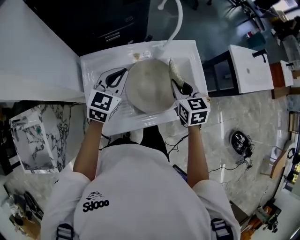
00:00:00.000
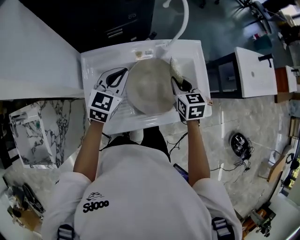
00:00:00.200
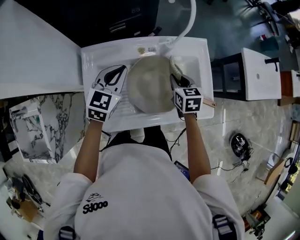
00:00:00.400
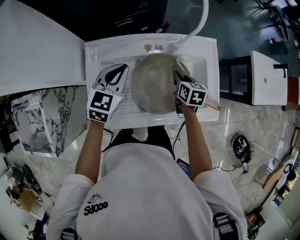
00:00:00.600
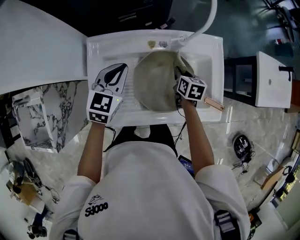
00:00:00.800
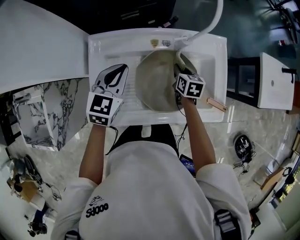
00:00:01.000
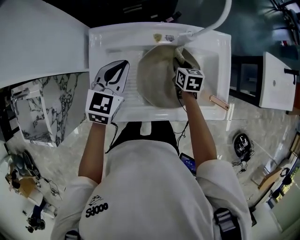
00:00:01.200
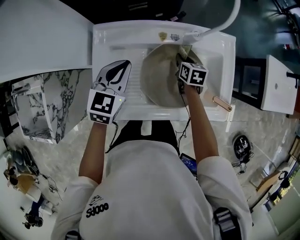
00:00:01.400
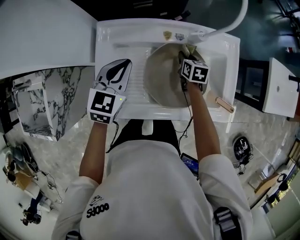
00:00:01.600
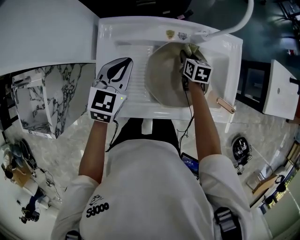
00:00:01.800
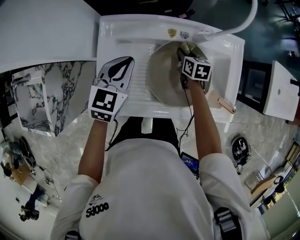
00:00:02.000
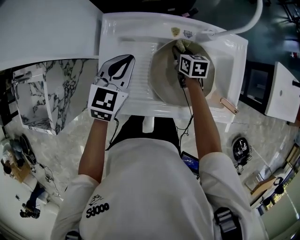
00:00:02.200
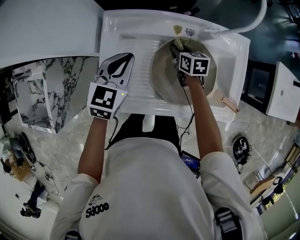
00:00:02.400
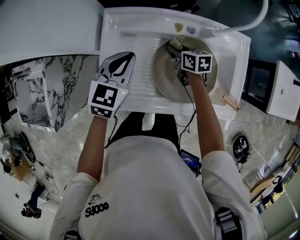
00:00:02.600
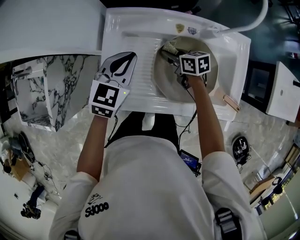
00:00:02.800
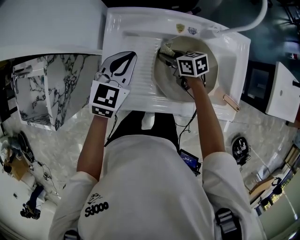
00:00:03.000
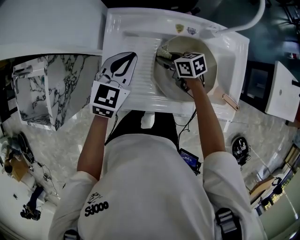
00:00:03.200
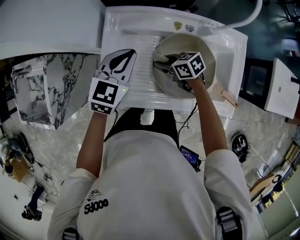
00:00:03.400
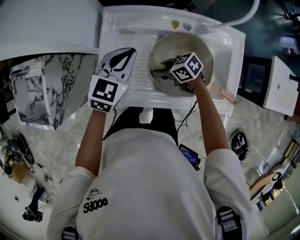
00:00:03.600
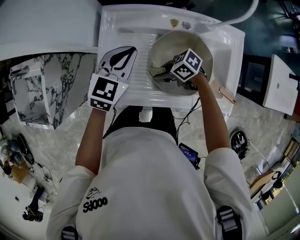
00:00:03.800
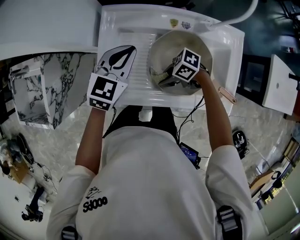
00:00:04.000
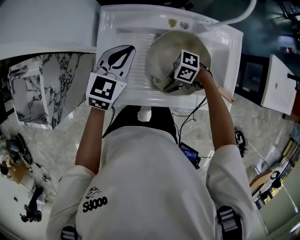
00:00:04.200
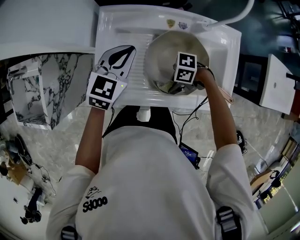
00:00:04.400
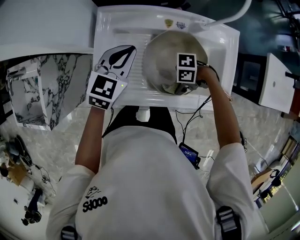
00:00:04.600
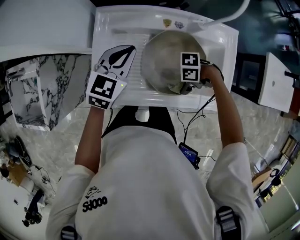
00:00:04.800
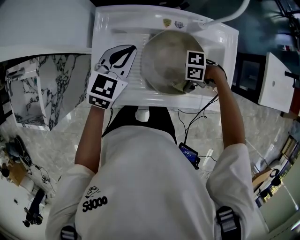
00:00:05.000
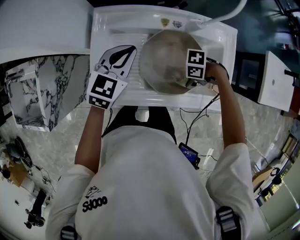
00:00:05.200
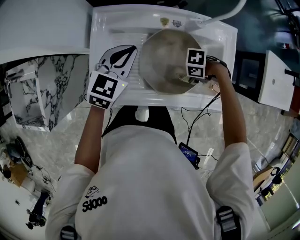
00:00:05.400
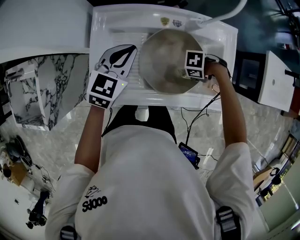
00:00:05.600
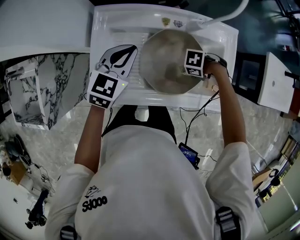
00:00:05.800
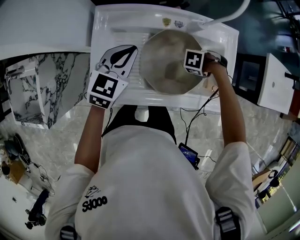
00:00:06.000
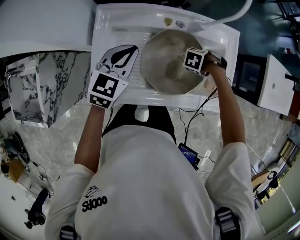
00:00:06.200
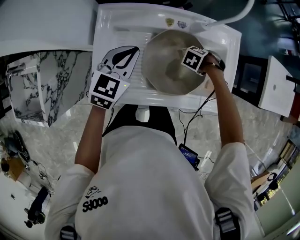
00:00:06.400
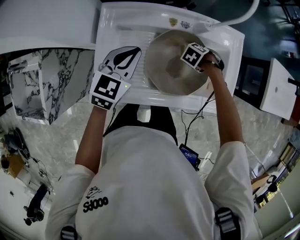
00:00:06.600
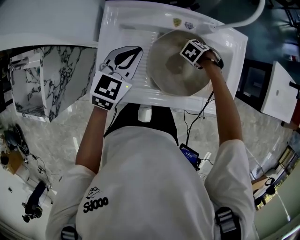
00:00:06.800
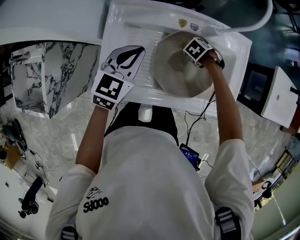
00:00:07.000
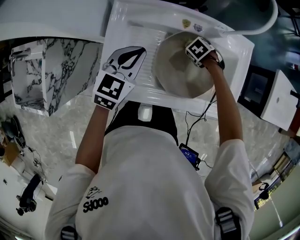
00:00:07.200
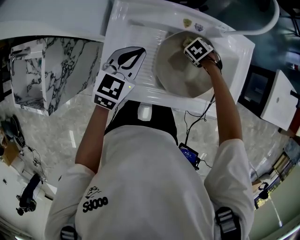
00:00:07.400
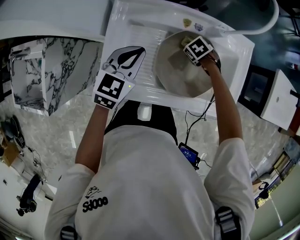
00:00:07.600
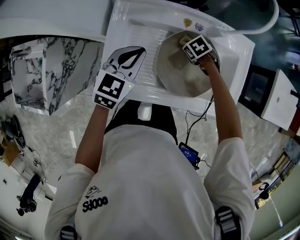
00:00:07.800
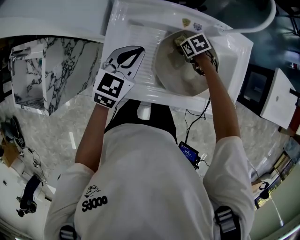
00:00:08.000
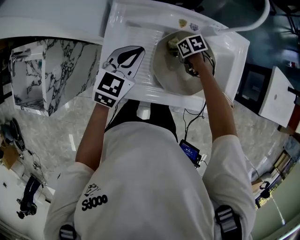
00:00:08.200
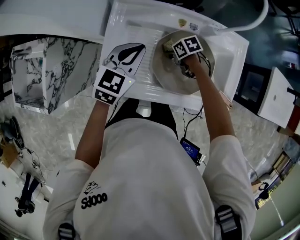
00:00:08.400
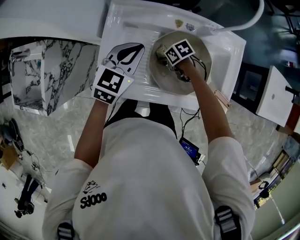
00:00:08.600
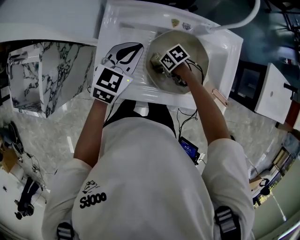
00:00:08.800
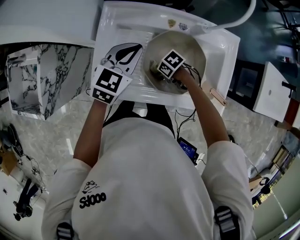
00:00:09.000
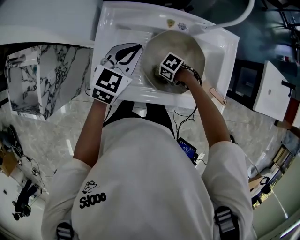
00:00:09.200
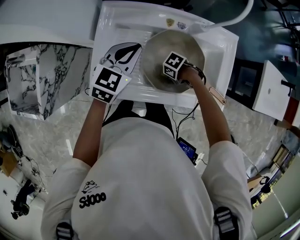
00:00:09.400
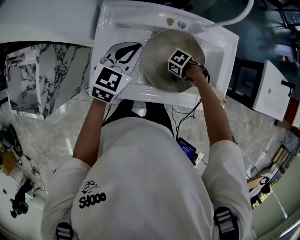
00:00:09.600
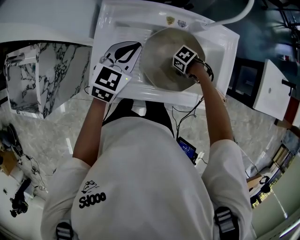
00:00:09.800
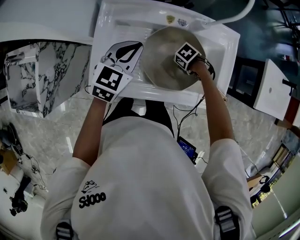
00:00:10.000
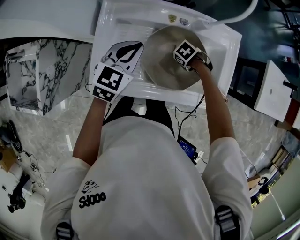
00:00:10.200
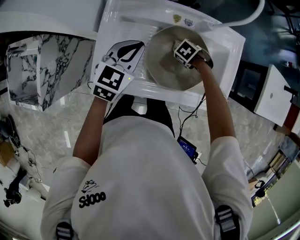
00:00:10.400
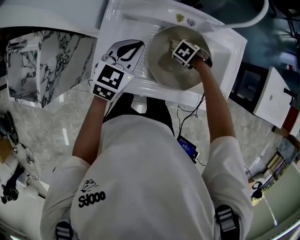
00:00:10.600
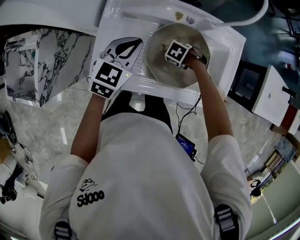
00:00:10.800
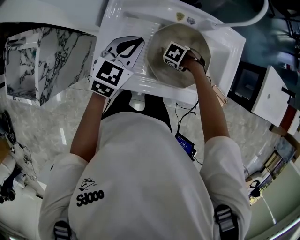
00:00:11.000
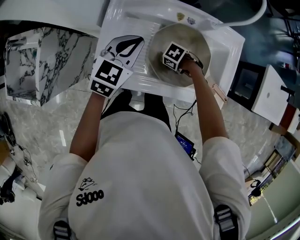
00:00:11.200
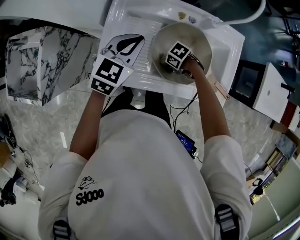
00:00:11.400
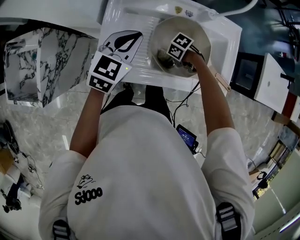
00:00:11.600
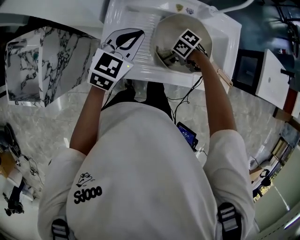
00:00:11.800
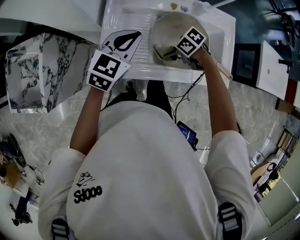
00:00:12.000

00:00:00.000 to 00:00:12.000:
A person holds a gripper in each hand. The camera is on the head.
00:00:00.000 to 00:00:01.600: The left gripper shifts roughly 10 cm to the left and downward. The right gripper moves downward and forward, about 25 cm, and swivels some 20 degrees.
00:00:01.600 to 00:00:03.000: The right gripper heads to the left, covering approximately 15 cm, and changes its angle by some 40 degrees.
00:00:03.000 to 00:00:04.400: The right gripper shifts by approximately 20 cm, and turns by approximately 70 degrees.
00:00:04.400 to 00:00:06.000: The right gripper shifts by some 20 cm, and angles its fingers downward, by roughly 40 degrees.
00:00:06.000 to 00:00:07.600: The right gripper moves about 15 cm, and turns by about 40 degrees.
00:00:07.600 to 00:00:09.000: The right gripper shifts by approximately 15 cm, and turns by roughly 30 degrees.
00:00:09.000 to 00:00:10.400: The right gripper moves roughly 15 cm, and swivels about 30 degrees.
00:00:10.400 to 00:00:12.000: The left gripper changes place by some 5 cm. Meanwhile the right gripper changes place by approximately 20 cm, and angles its fingers upward, by approximately 40 degrees.

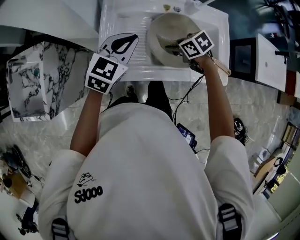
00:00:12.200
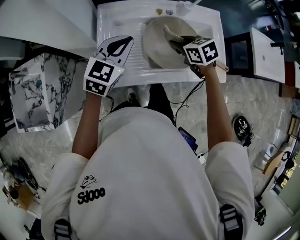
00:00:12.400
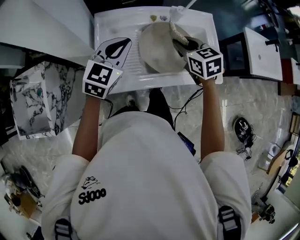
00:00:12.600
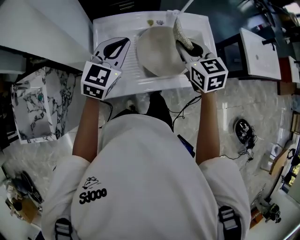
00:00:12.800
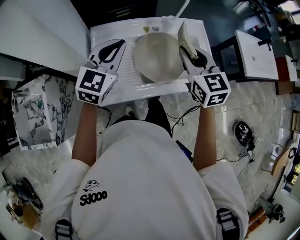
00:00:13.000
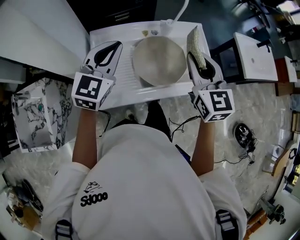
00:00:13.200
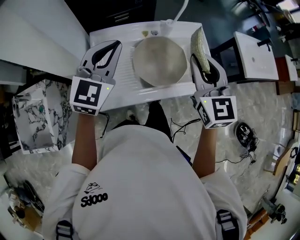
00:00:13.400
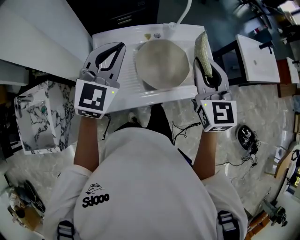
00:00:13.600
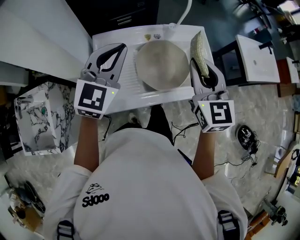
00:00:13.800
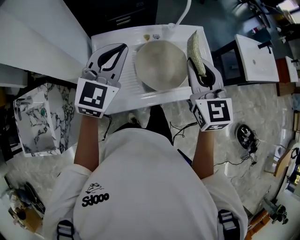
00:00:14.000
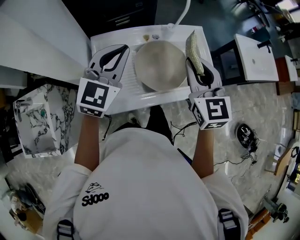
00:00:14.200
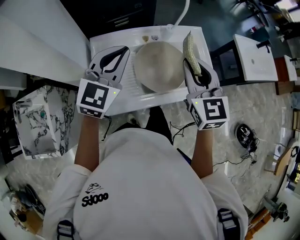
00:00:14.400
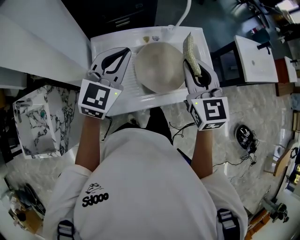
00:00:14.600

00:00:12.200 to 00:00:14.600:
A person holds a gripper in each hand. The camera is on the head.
00:00:12.200 to 00:00:13.400: The right gripper travels upward by about 30 cm, and tilts its fingers approximately 40 degrees upward; the left gripper shifts approximately 15 cm upward, and changes its angle by about 20 degrees.
00:00:13.400 to 00:00:14.600: The grippers stay close to where they were, moving slightly.

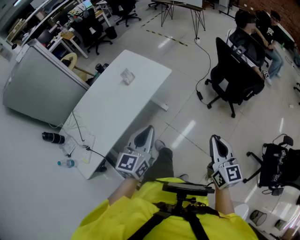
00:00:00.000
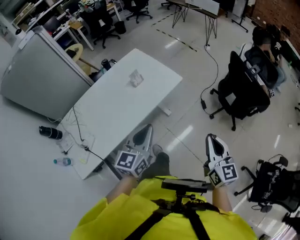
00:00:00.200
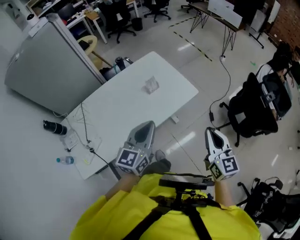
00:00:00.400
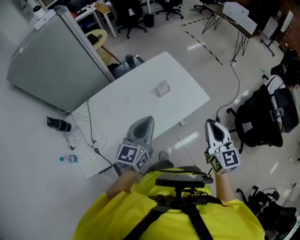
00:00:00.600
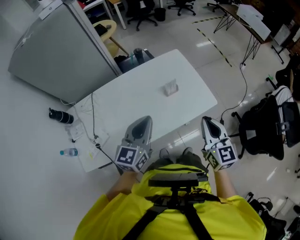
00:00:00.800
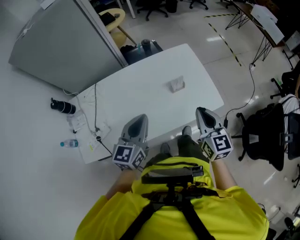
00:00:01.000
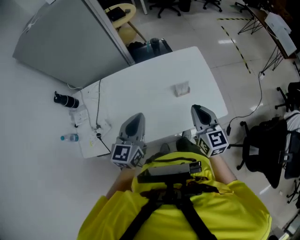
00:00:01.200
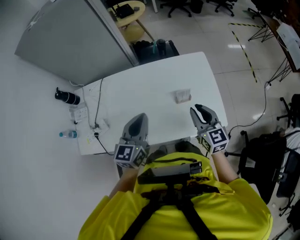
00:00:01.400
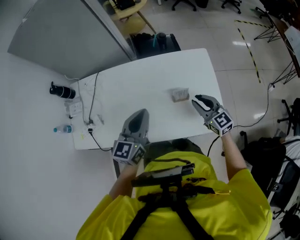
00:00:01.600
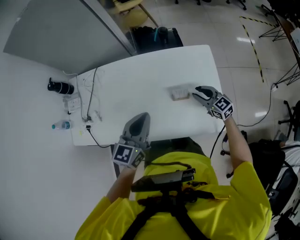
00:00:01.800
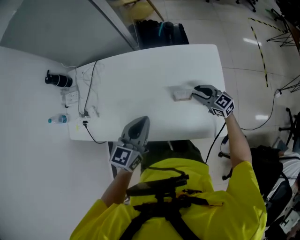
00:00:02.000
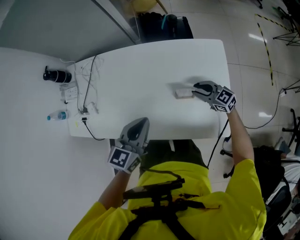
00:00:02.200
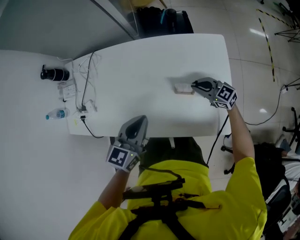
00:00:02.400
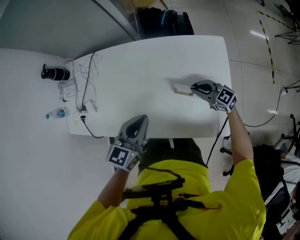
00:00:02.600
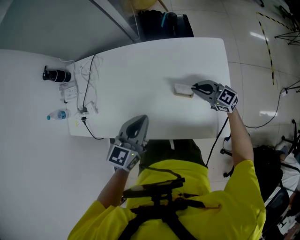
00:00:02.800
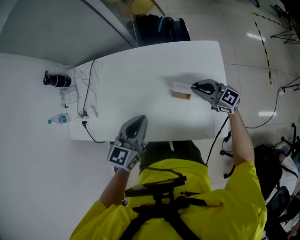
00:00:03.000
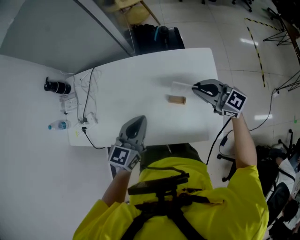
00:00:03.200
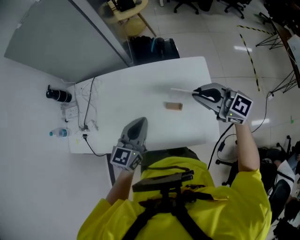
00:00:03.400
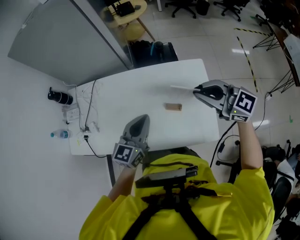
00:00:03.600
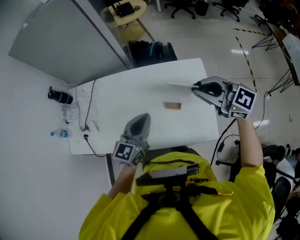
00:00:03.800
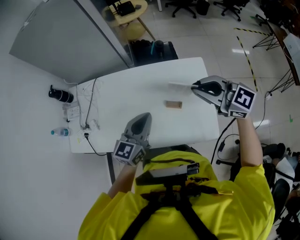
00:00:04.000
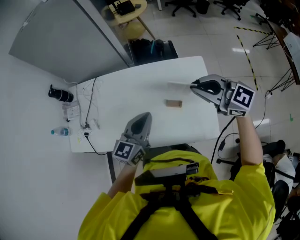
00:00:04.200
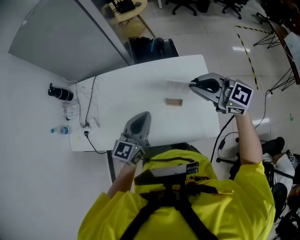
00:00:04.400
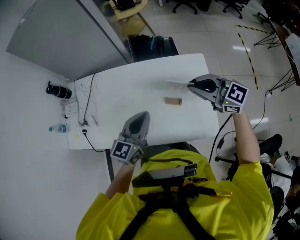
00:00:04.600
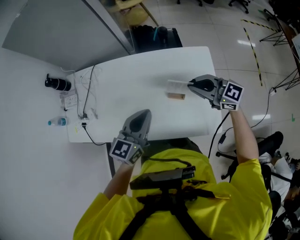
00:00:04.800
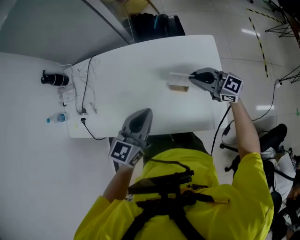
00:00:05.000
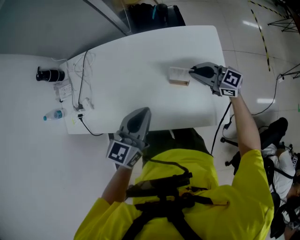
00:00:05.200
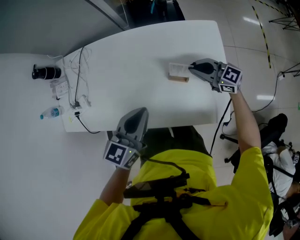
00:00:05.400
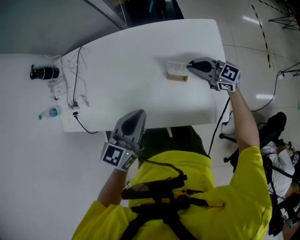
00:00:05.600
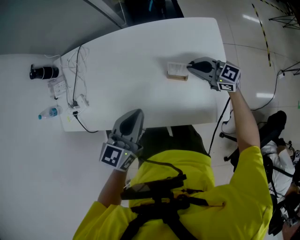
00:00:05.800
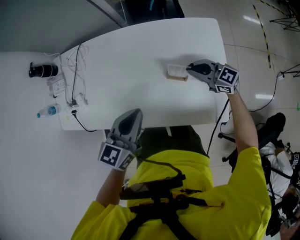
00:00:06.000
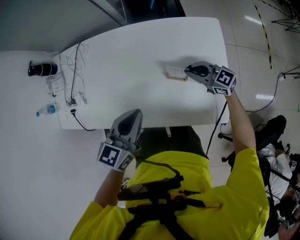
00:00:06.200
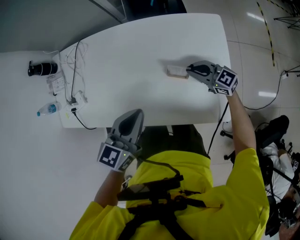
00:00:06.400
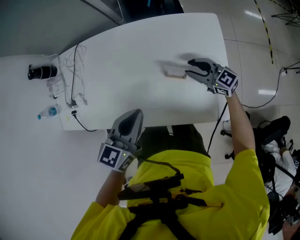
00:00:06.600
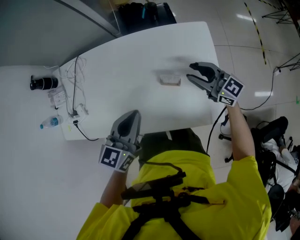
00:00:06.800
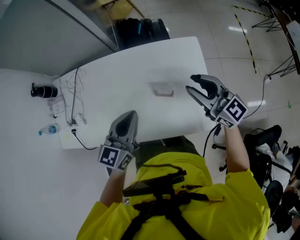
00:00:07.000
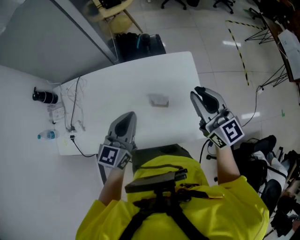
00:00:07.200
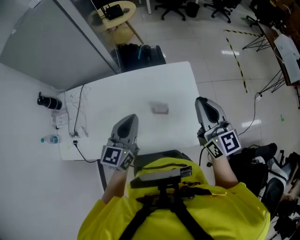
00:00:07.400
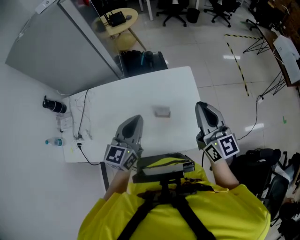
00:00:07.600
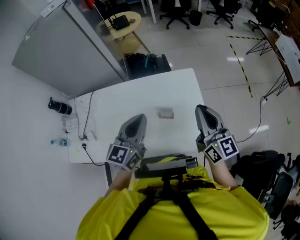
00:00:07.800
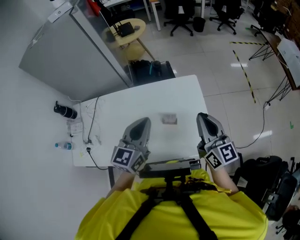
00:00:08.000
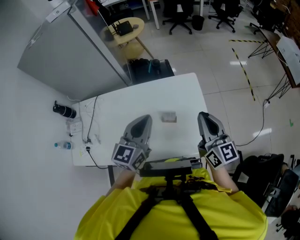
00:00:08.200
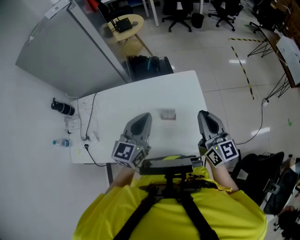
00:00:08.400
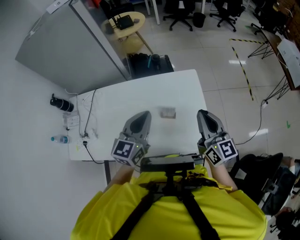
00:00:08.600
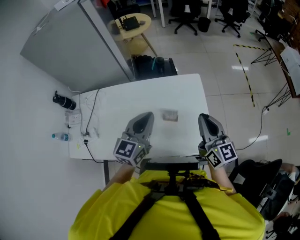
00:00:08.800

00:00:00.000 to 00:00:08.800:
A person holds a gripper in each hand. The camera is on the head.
00:00:00.000 to 00:00:01.400: The two grippers travel together, some 50 cm. The right gripper changes its angle by some 50 degrees; the left gripper changes its angle by approximately 40 degrees.
00:00:01.400 to 00:00:03.000: The left gripper moves downward, about 10 cm, while the right gripper moves about 20 cm, and swivels roughly 50 degrees.
00:00:03.000 to 00:00:04.400: The right gripper shifts roughly 25 cm upward, while the left gripper travels upward by roughly 5 cm.
00:00:04.400 to 00:00:05.800: The right gripper heads downward, covering about 25 cm, while the left gripper heads downward, covering approximately 10 cm.
00:00:05.800 to 00:00:07.400: The left gripper heads upward, covering approximately 10 cm, while the right gripper goes about 25 cm upward, rotates some 50 degrees, and opens, then closes again.
00:00:07.400 to 00:00:08.800: The grippers move only a little.
